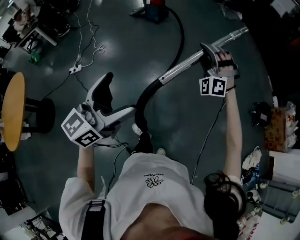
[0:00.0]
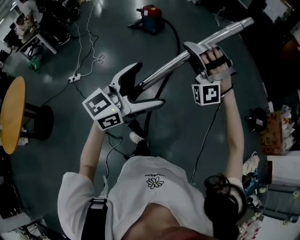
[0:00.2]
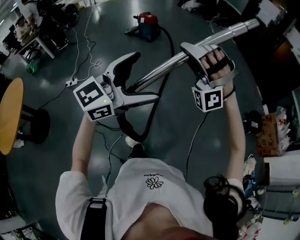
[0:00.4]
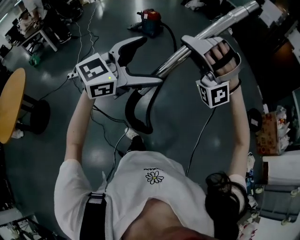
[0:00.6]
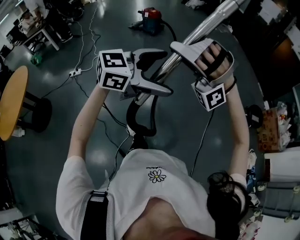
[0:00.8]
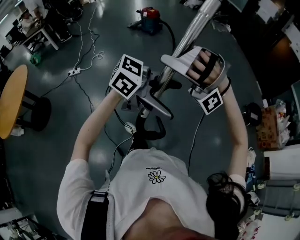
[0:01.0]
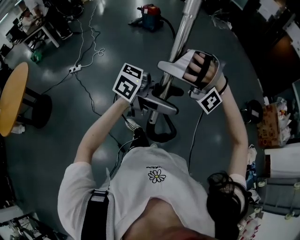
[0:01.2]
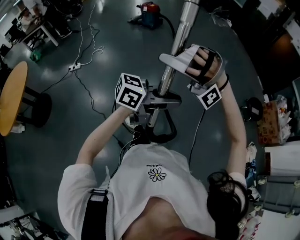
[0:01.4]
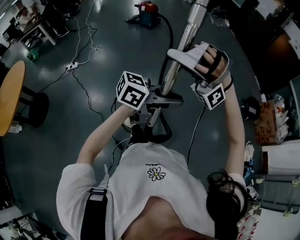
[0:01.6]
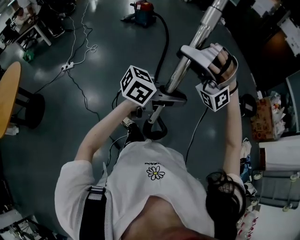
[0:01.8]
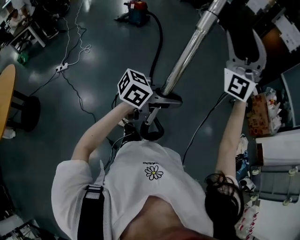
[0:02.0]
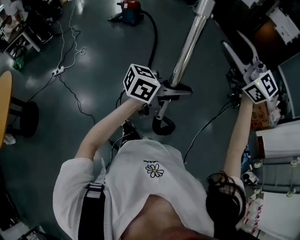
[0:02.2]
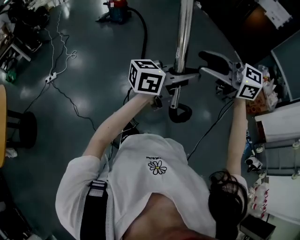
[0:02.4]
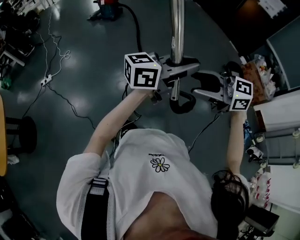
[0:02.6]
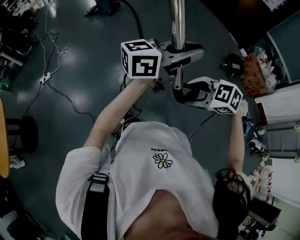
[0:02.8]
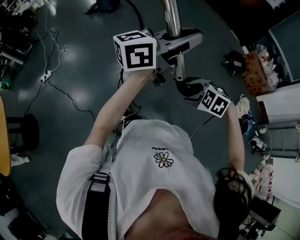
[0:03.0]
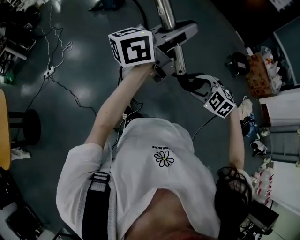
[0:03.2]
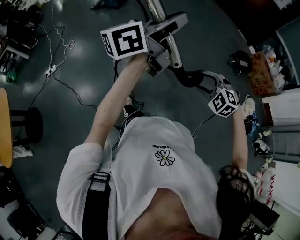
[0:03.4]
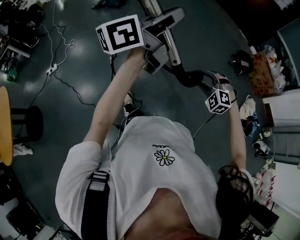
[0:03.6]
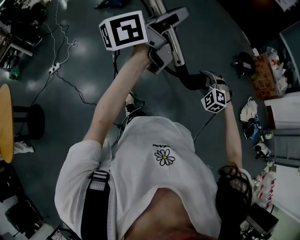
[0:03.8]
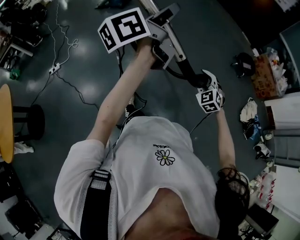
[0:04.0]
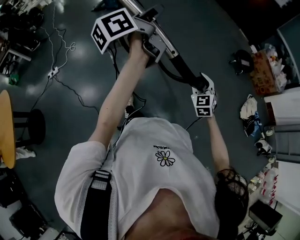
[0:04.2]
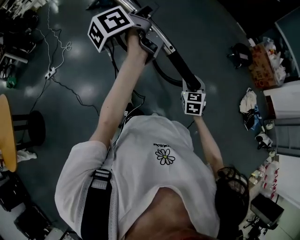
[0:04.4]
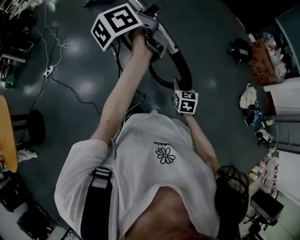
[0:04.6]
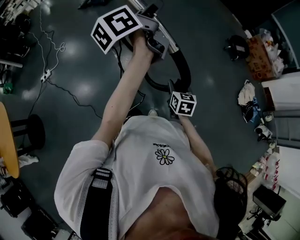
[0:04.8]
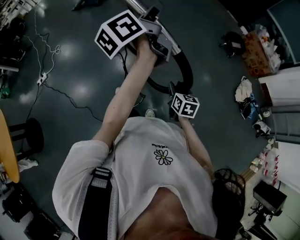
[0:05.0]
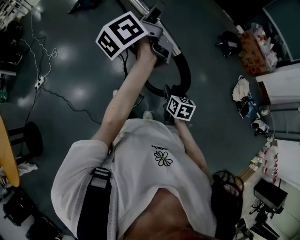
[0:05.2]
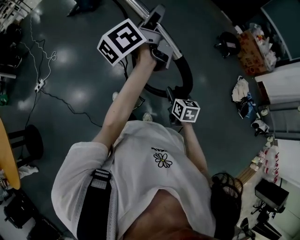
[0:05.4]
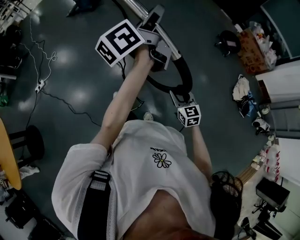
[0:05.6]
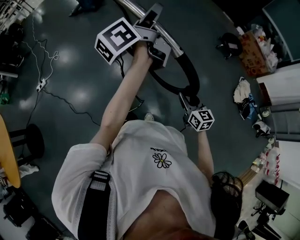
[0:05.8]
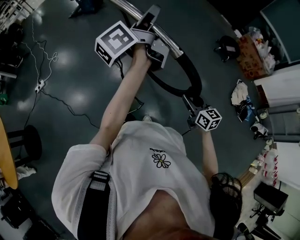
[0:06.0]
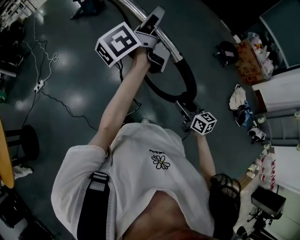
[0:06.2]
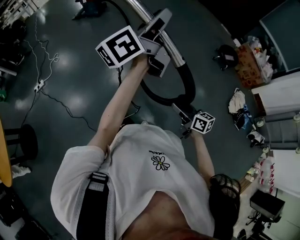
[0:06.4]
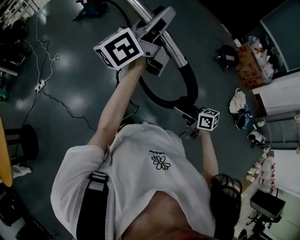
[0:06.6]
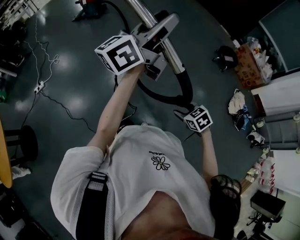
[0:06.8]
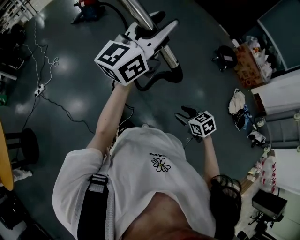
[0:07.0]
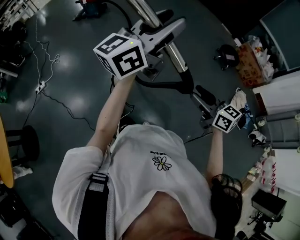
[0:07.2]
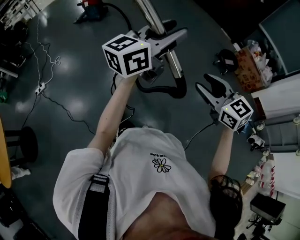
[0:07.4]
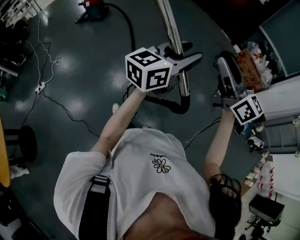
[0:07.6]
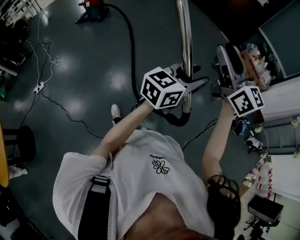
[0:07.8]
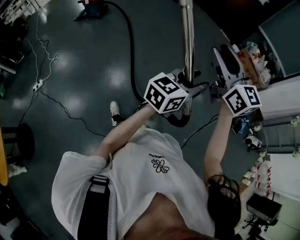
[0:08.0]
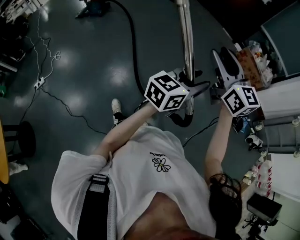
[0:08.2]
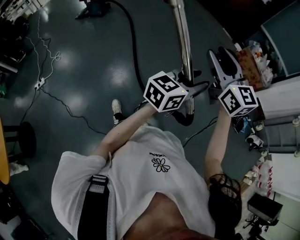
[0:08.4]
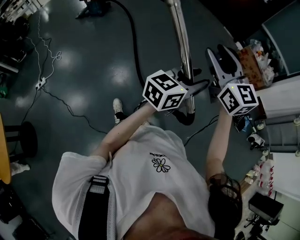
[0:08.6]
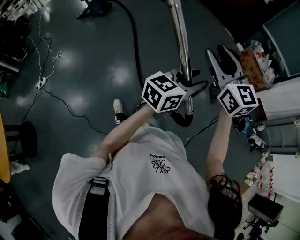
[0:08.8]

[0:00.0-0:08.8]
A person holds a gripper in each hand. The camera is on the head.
0:00.0 to 0:01.4: The right gripper changes place by about 35 cm, and changes its angle by roughly 60 degrees, while the left gripper ends up some 30 cm from where it was, turns by approximately 50 degrees, and closes up.
0:01.4 to 0:03.0: The left gripper heads upward, covering roughly 15 cm, and rotates approximately 20 degrees. Meanwhile the right gripper moves downward, some 25 cm, and rotates around the line of its fingers by about 100 degrees, clockwise from behind.
0:03.0 to 0:04.4: The left gripper is displaced forward, to the left and downward by approximately 15 cm, and swivels about 50 degrees; the right gripper is displaced forward and downward by approximately 10 cm, and tips its fingers upward by approximately 30 degrees.
0:04.4 to 0:05.8: The left gripper moves to the right, approximately 5 cm, while the right gripper travels backward and to the right by roughly 10 cm, and changes its angle by some 30 degrees.
0:05.8 to 0:07.4: The left gripper moves backward, about 5 cm, and rotates approximately 50 degrees. The right gripper swings up and down, some 25 cm each way, with 2 reversals, and turns by approximately 30 degrees.
0:07.4 to 0:08.8: The right gripper travels upward and forward by about 10 cm, and rotates approximately 20 degrees. Meanwhile the left gripper heads downward, to the right and backward, covering roughly 20 cm.

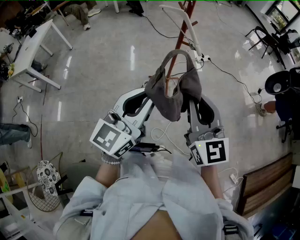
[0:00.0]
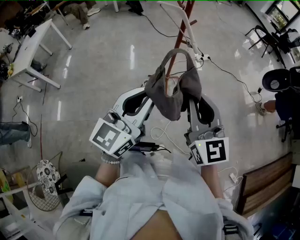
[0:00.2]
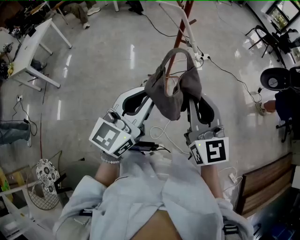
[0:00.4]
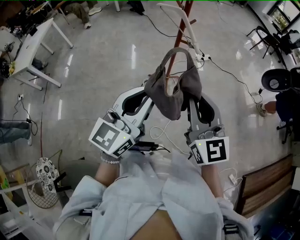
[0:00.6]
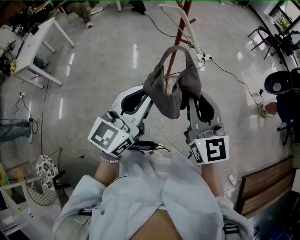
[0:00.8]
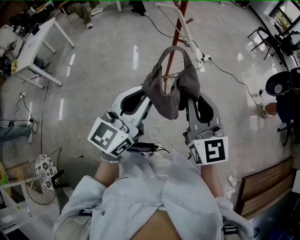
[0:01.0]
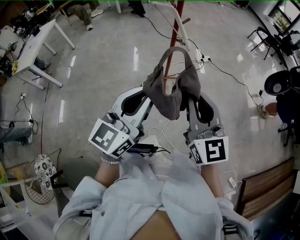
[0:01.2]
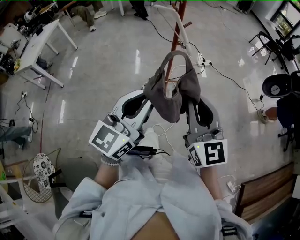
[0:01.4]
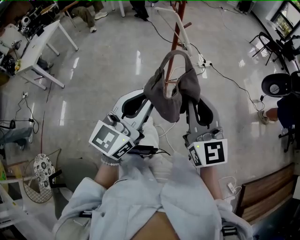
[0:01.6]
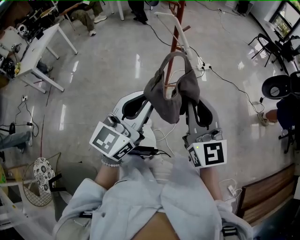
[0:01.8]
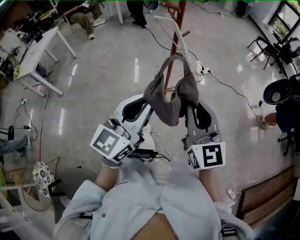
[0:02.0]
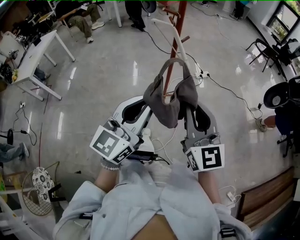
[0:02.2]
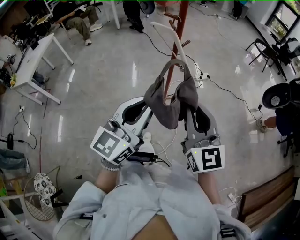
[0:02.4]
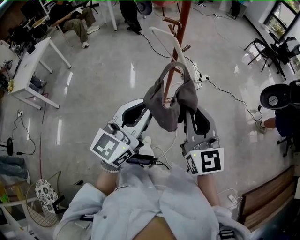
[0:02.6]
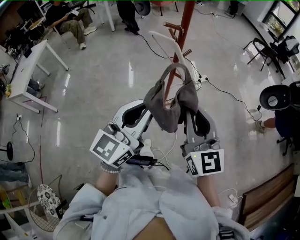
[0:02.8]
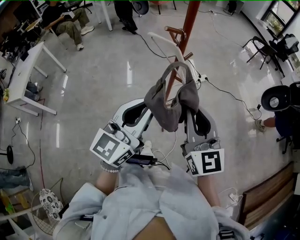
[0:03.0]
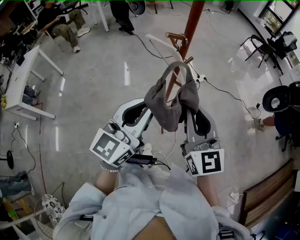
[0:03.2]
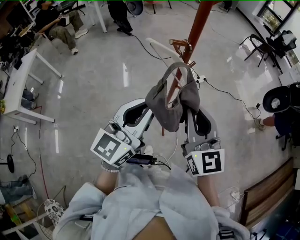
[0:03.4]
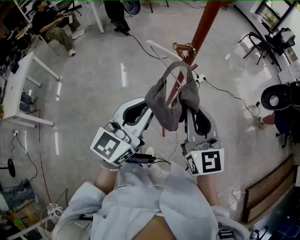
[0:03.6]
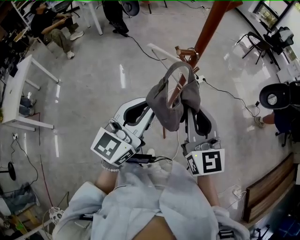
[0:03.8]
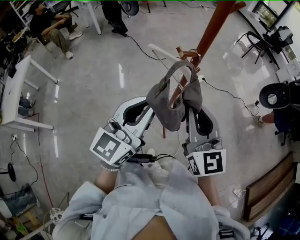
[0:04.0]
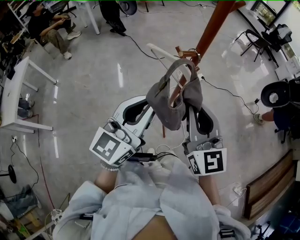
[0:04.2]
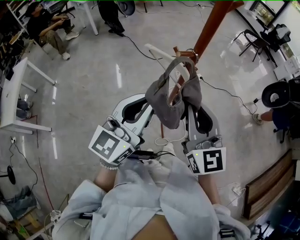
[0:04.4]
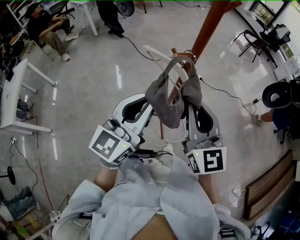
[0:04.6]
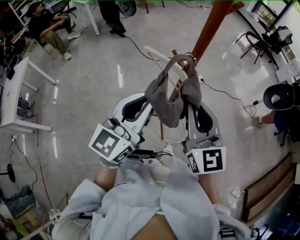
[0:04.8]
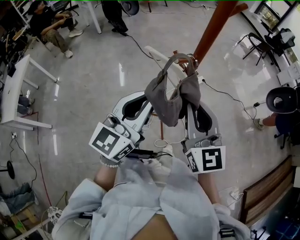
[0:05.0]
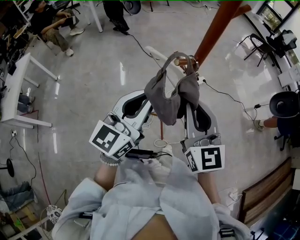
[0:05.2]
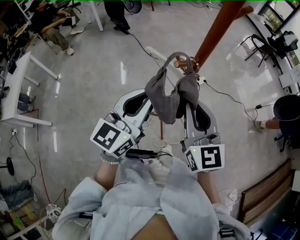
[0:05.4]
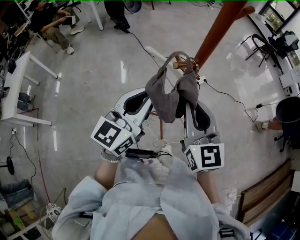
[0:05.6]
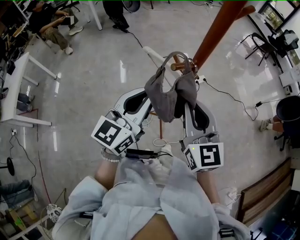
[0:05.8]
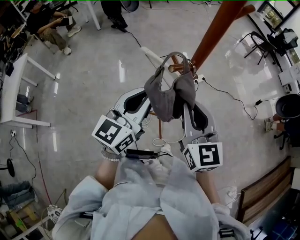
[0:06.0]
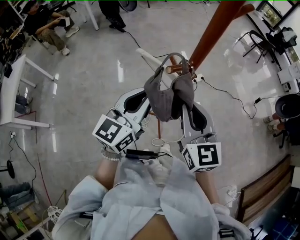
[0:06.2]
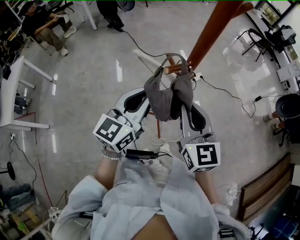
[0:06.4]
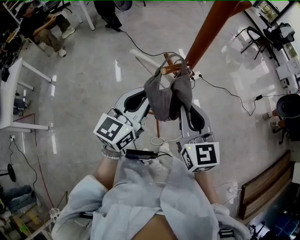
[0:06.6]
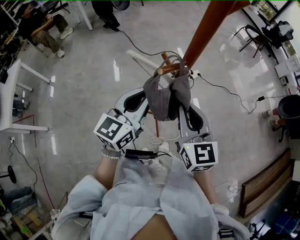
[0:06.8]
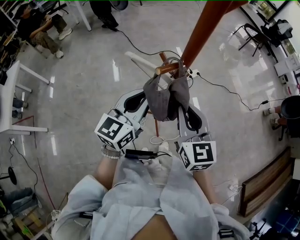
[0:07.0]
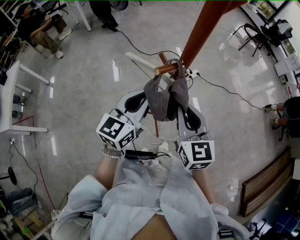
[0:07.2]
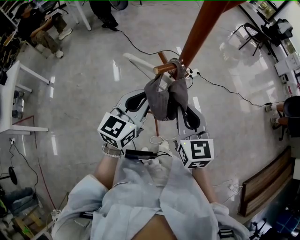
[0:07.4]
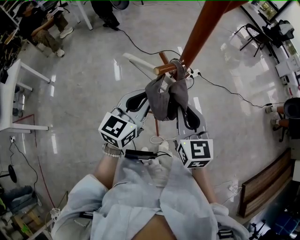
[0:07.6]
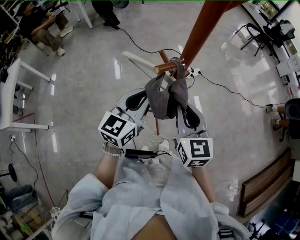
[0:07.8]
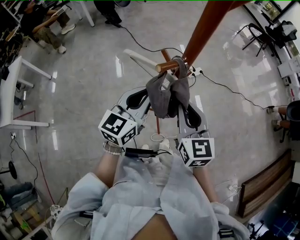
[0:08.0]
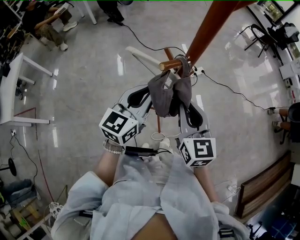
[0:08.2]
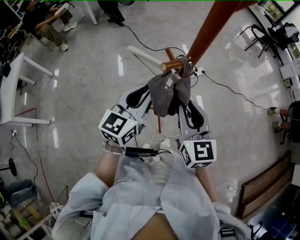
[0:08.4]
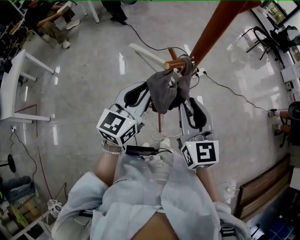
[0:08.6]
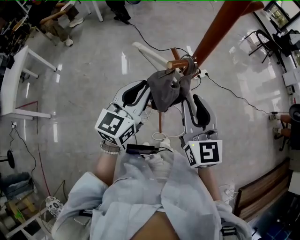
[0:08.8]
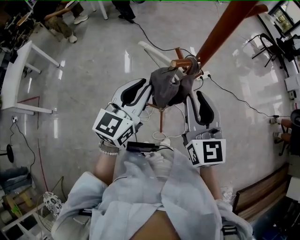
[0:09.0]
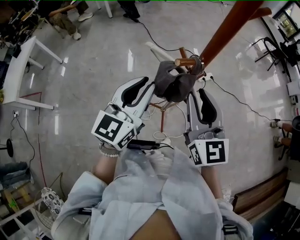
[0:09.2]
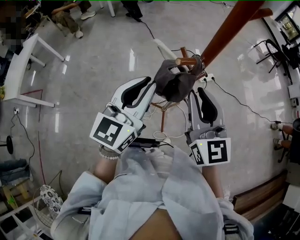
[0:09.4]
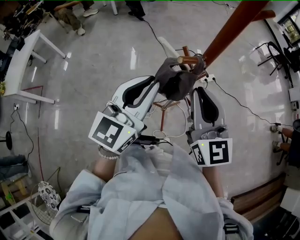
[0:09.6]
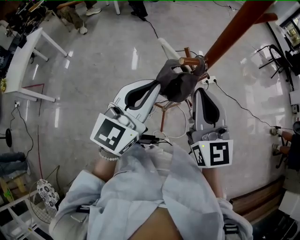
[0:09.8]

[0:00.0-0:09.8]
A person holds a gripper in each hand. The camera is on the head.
0:00.0 to 0:01.4: Both grippers travel together to the right, some 5 cm.
0:01.4 to 0:02.8: Both grippers move forward, about 20 cm.
0:02.8 to 0:04.2: Both grippers travel together forward and to the left, roughly 20 cm.
0:04.2 to 0:05.6: The two grippers go approximately 5 cm forward.
0:05.6 to 0:07.0: The two grippers go about 5 cm downward.
0:07.0 to 0:08.4: The grippers move only a little.
0:08.4 to 0:09.8: The two grippers go roughly 10 cm upward.

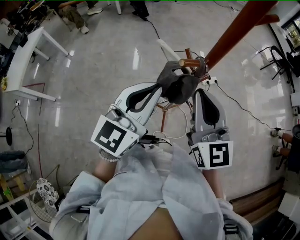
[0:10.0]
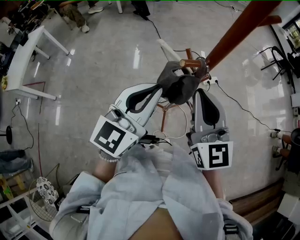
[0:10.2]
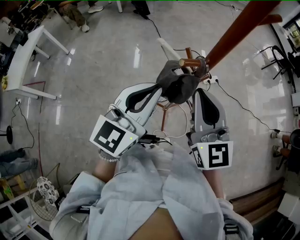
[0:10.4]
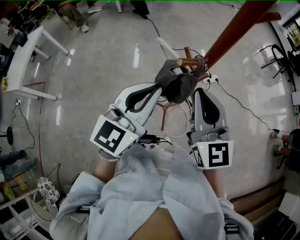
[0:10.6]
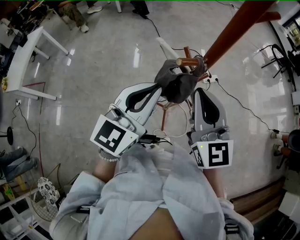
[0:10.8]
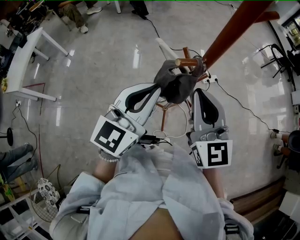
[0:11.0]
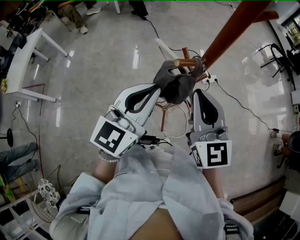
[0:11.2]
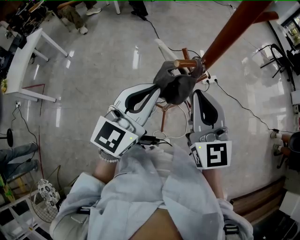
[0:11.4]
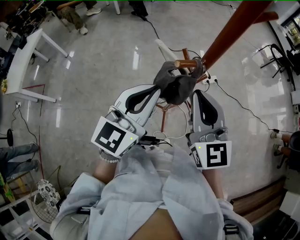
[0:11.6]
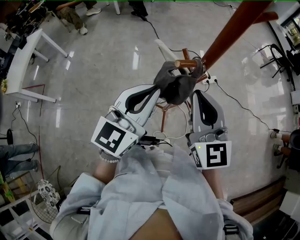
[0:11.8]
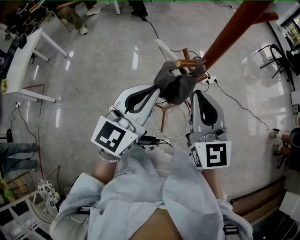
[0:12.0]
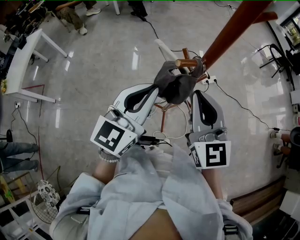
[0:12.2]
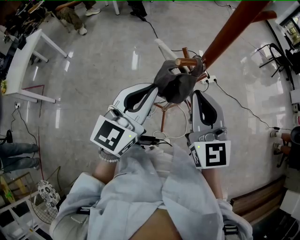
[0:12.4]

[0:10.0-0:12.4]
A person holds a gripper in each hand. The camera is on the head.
0:10.0 to 0:11.2: Both grippers stay about where they are.
0:11.2 to 0:12.4: Both grippers stay put.

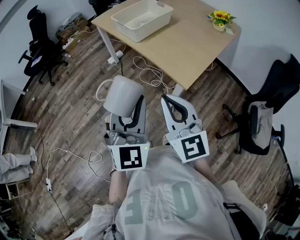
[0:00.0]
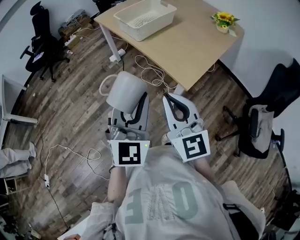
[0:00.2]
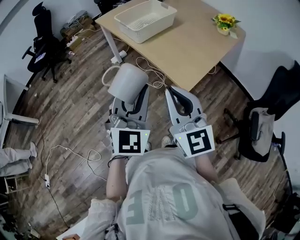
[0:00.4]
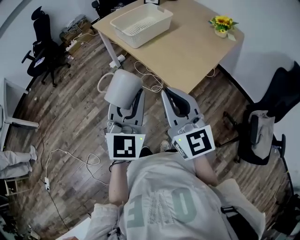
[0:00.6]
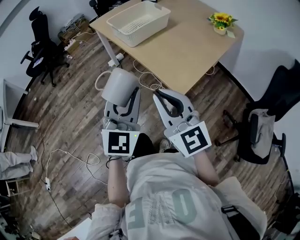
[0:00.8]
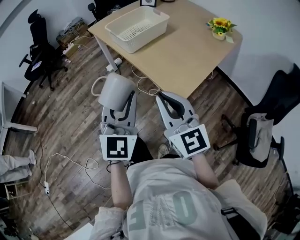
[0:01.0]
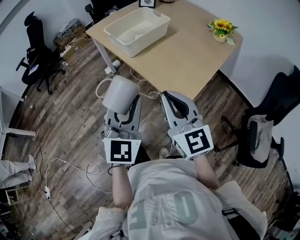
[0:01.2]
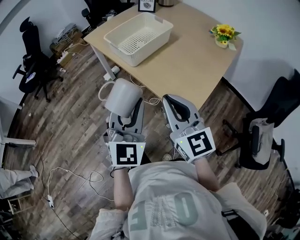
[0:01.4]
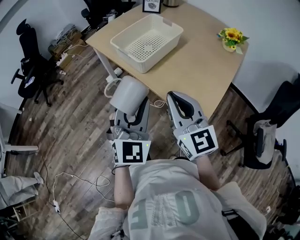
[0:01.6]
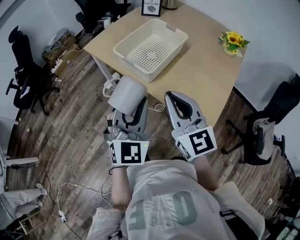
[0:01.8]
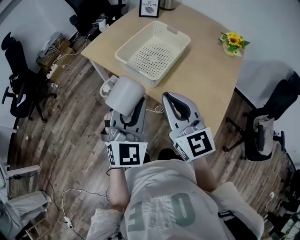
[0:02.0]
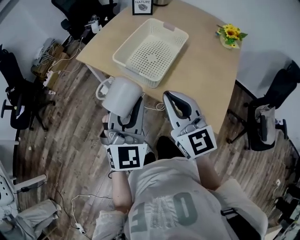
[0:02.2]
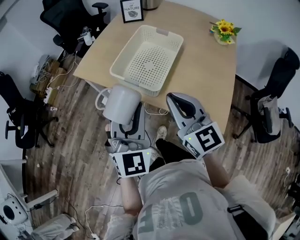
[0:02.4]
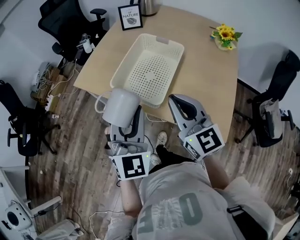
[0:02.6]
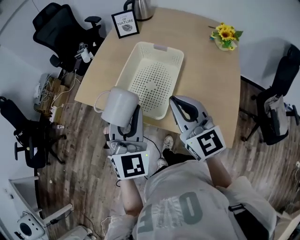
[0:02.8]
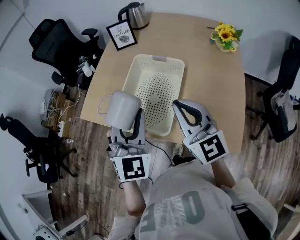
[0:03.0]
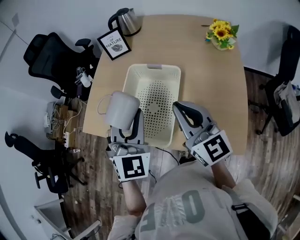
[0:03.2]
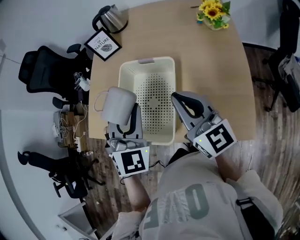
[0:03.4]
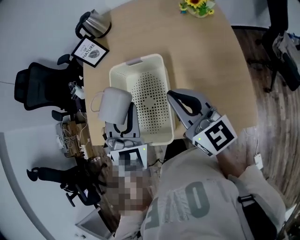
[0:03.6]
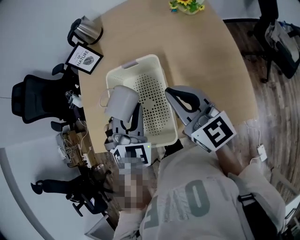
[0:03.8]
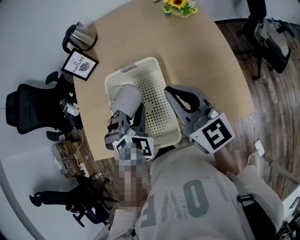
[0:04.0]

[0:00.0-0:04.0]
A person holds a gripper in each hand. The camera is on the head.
0:00.0 to 0:01.4: Both grippers travel together forward, roughly 15 cm.
0:01.4 to 0:02.6: The grippers both shift forward and to the left by roughly 30 cm.
0:02.6 to 0:04.0: The left gripper shifts by approximately 25 cm, and points its fingers approximately 40 degrees further downward. The right gripper moves about 20 cm, and swivels approximately 30 degrees.
